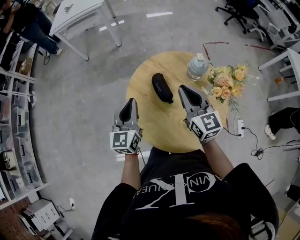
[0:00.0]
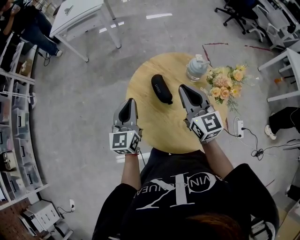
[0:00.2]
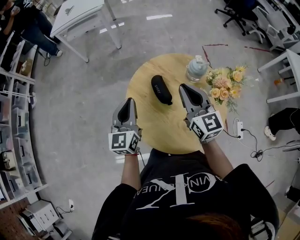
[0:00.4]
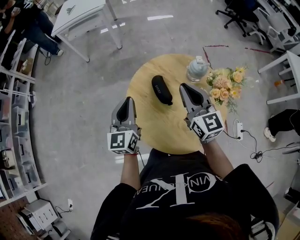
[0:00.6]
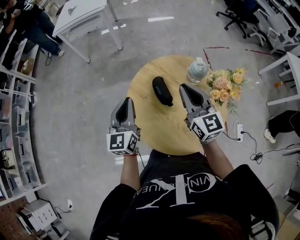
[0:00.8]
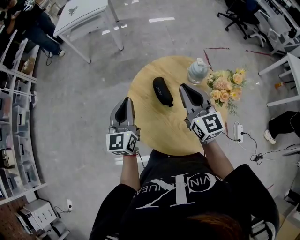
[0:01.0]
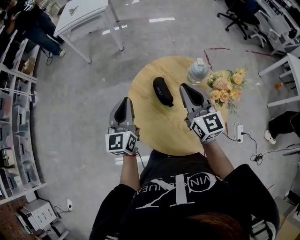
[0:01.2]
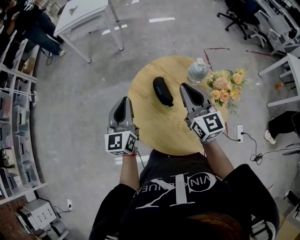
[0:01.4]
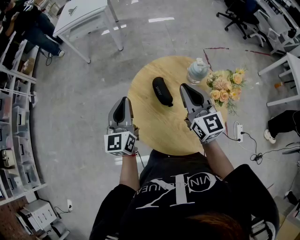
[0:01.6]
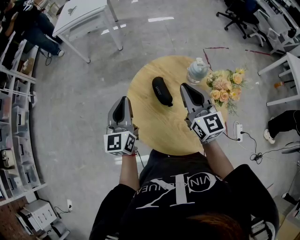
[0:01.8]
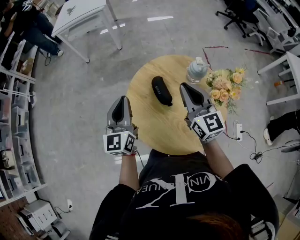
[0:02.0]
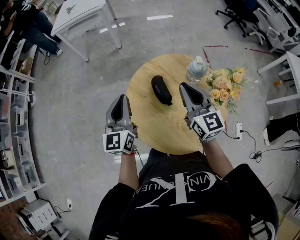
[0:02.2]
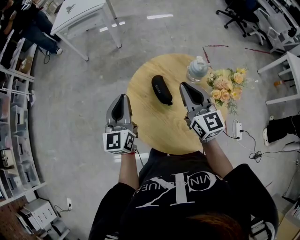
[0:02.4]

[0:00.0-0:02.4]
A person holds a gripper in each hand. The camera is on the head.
0:00.0 to 0:02.4: The grippers move only a little.

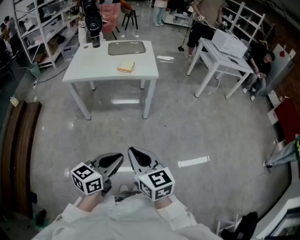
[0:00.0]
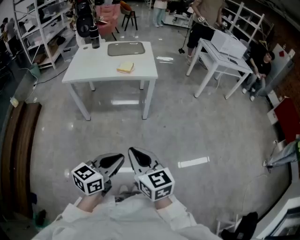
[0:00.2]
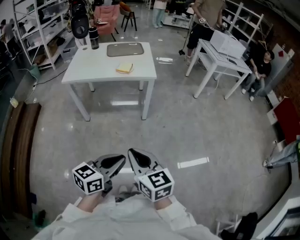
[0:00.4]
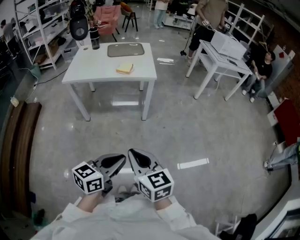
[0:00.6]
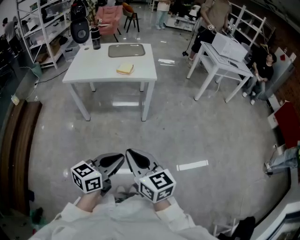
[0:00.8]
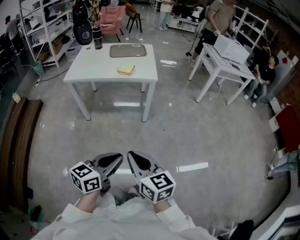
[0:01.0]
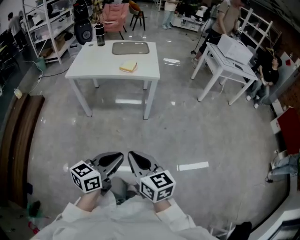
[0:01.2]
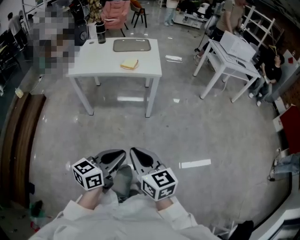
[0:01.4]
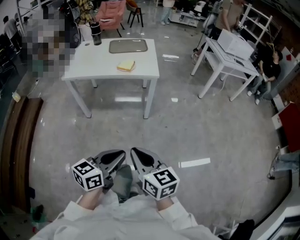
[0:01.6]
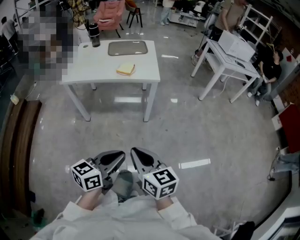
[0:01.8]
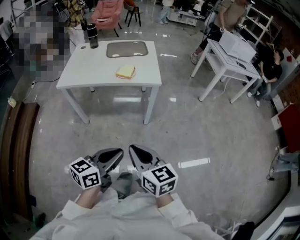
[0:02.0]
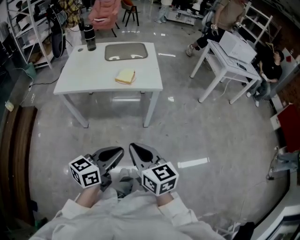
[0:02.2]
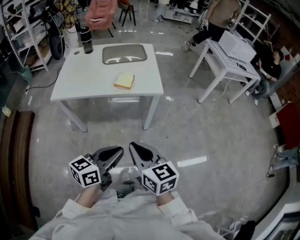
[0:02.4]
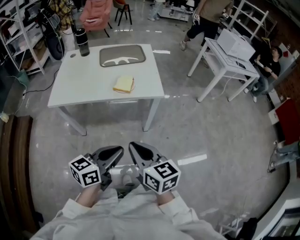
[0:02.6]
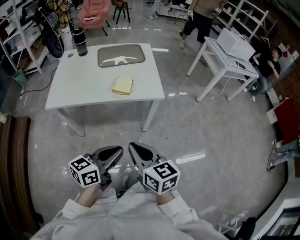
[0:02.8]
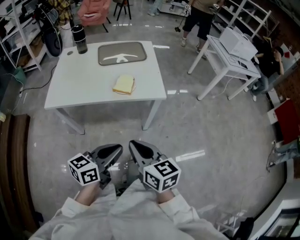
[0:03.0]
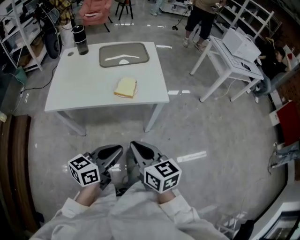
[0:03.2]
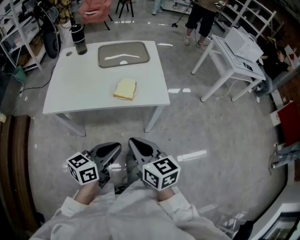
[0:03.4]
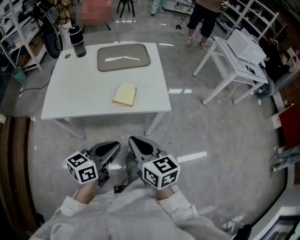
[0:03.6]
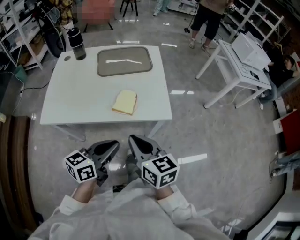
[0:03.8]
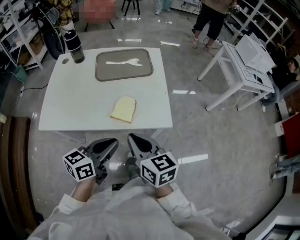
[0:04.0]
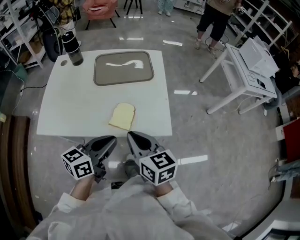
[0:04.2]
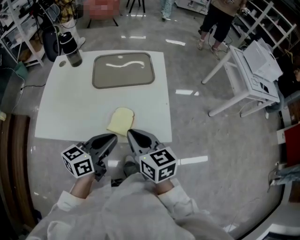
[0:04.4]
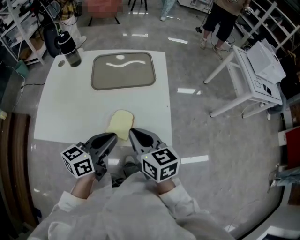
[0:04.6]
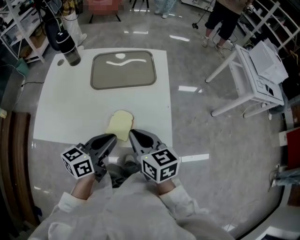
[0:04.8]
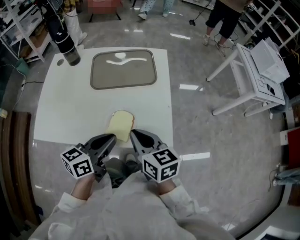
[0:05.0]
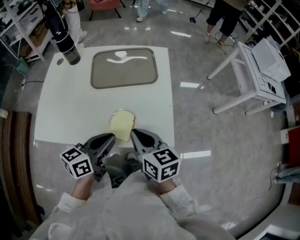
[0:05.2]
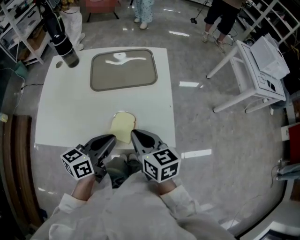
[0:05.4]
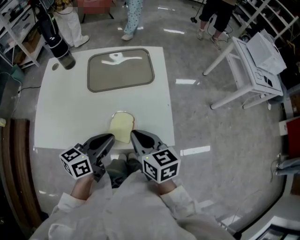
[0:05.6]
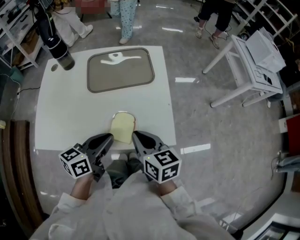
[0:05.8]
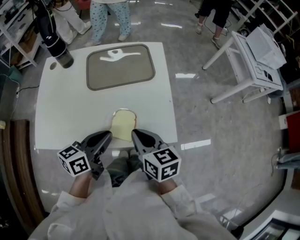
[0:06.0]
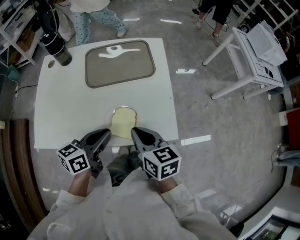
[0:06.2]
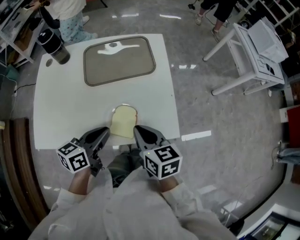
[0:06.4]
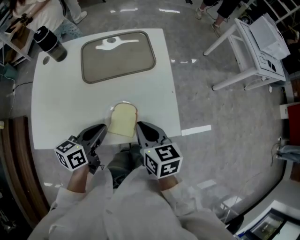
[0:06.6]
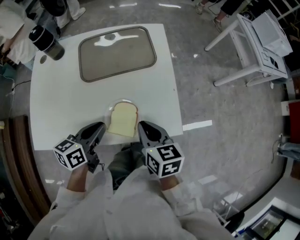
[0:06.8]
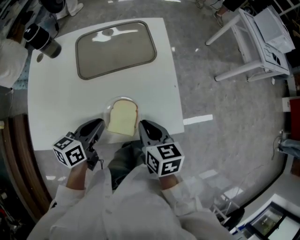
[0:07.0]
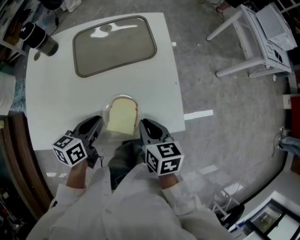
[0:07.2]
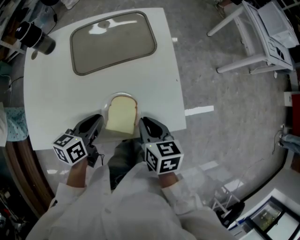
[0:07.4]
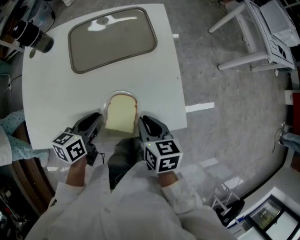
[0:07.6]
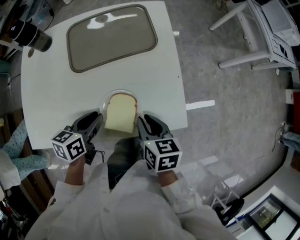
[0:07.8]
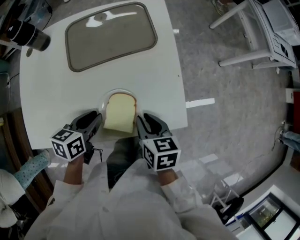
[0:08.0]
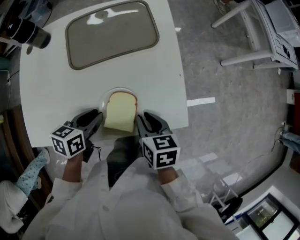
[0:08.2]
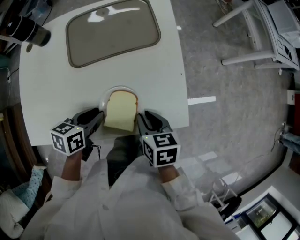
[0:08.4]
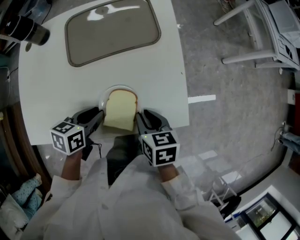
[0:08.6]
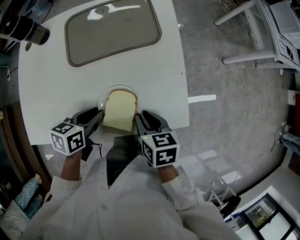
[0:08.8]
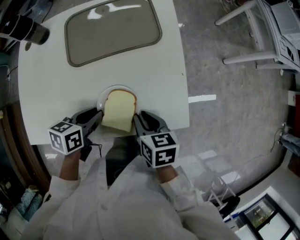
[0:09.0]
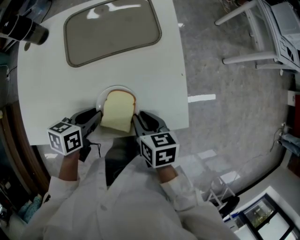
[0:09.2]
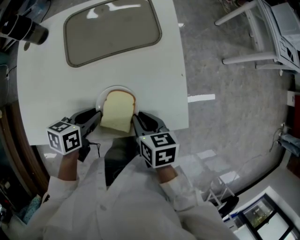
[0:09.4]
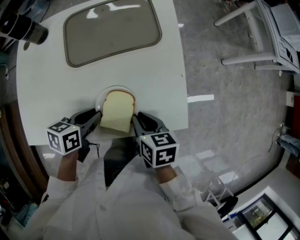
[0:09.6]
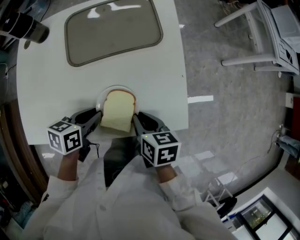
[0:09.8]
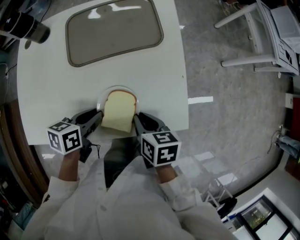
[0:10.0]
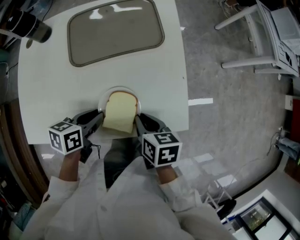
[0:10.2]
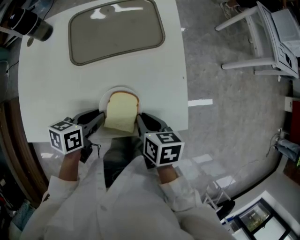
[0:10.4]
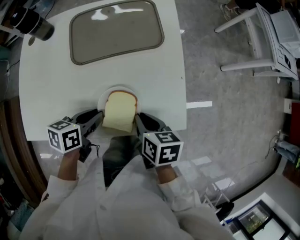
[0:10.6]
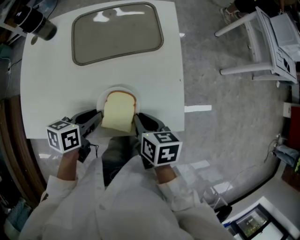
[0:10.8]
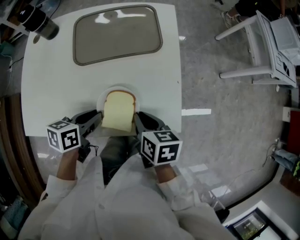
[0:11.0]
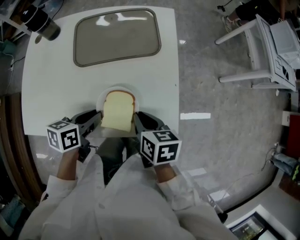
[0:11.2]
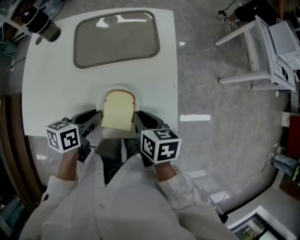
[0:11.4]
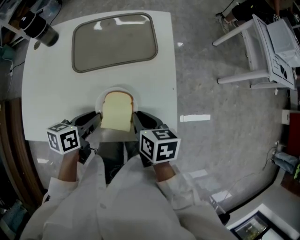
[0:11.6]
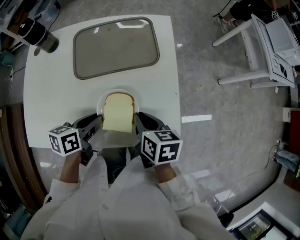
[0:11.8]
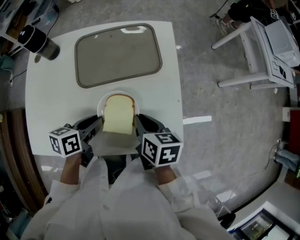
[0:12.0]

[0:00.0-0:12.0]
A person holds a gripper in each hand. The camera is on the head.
0:00.0 to 0:01.6: The left gripper changes place by about 5 cm. Meanwhile the right gripper shifts by some 5 cm.
0:01.6 to 0:03.0: Both grippers move forward and to the left, approximately 35 cm.
0:03.0 to 0:04.4: Both grippers move forward, some 35 cm.
0:04.4 to 0:06.0: Both grippers move forward, roughly 5 cm.
0:06.0 to 0:07.6: The right gripper travels downward by roughly 10 cm, while the left gripper heads downward and forward, covering approximately 15 cm.
0:07.6 to 0:10.4: The grippers stay close to where they were, moving slightly.
0:10.4 to 0:12.0: Both grippers move forward, some 5 cm.

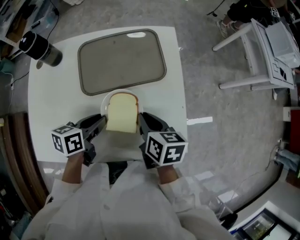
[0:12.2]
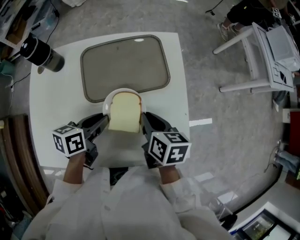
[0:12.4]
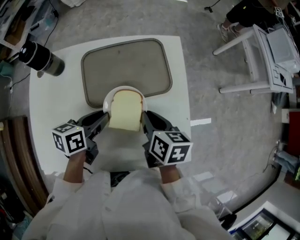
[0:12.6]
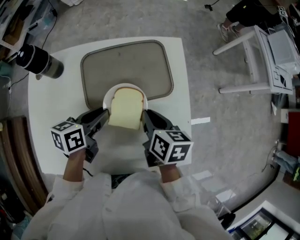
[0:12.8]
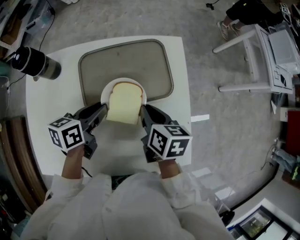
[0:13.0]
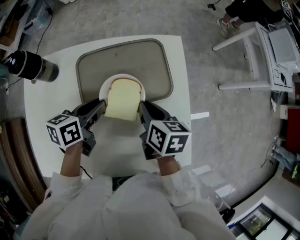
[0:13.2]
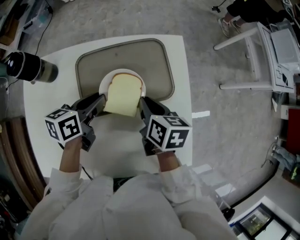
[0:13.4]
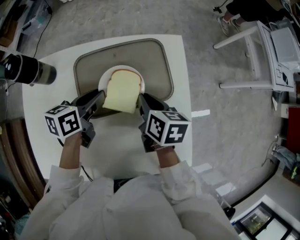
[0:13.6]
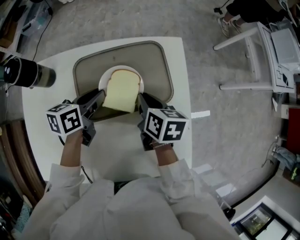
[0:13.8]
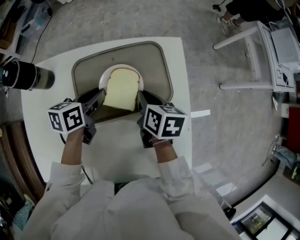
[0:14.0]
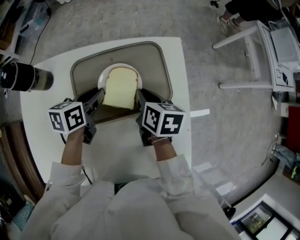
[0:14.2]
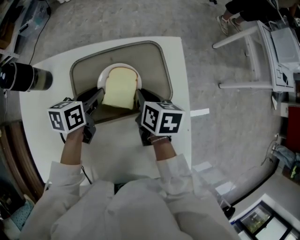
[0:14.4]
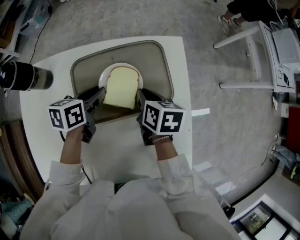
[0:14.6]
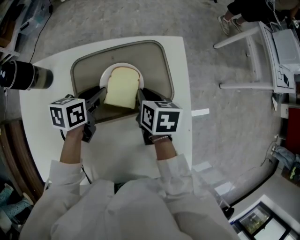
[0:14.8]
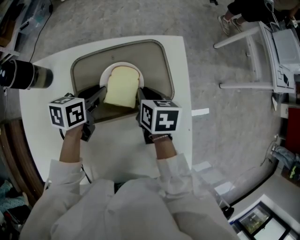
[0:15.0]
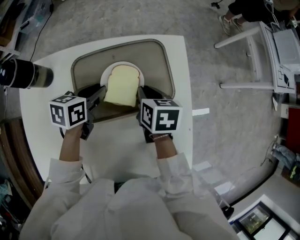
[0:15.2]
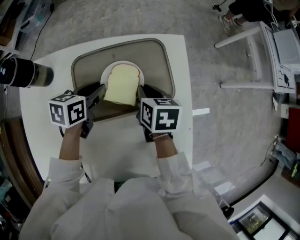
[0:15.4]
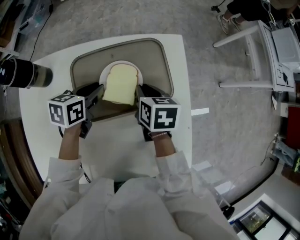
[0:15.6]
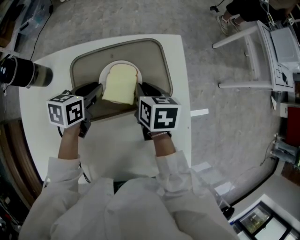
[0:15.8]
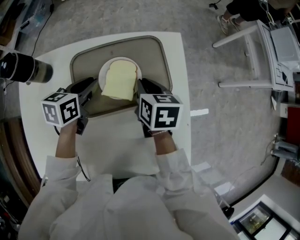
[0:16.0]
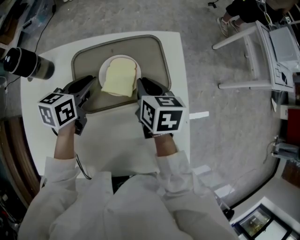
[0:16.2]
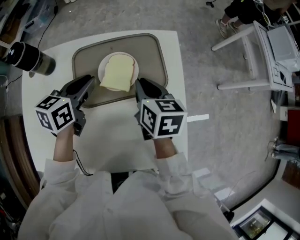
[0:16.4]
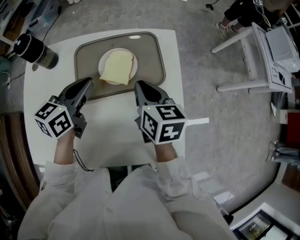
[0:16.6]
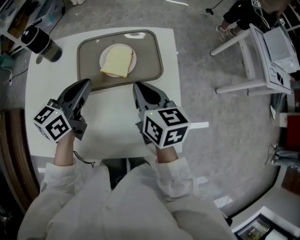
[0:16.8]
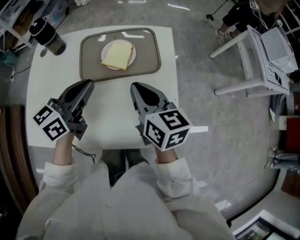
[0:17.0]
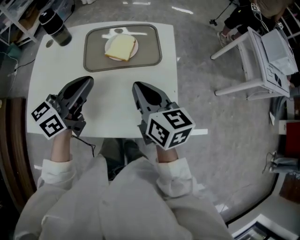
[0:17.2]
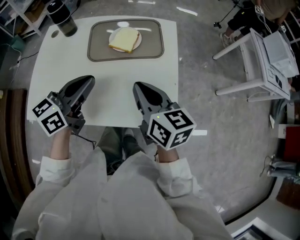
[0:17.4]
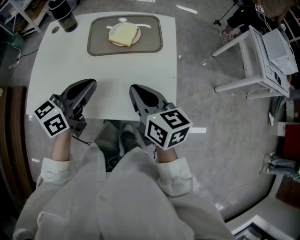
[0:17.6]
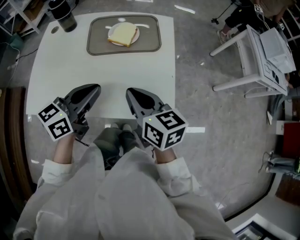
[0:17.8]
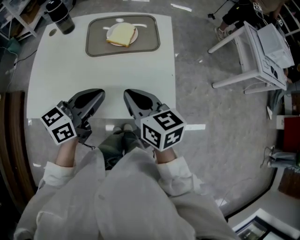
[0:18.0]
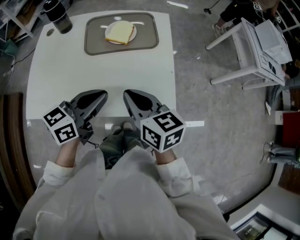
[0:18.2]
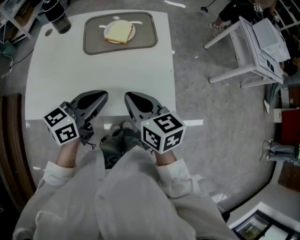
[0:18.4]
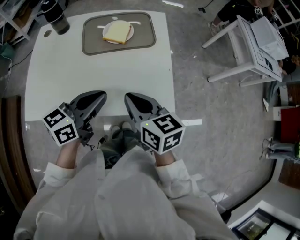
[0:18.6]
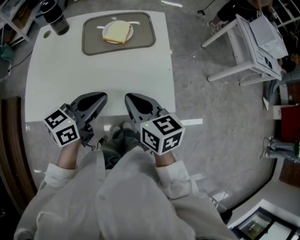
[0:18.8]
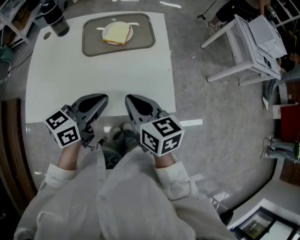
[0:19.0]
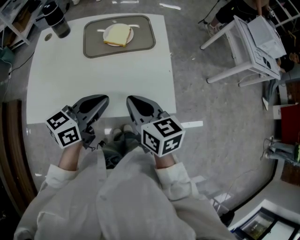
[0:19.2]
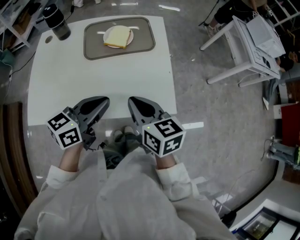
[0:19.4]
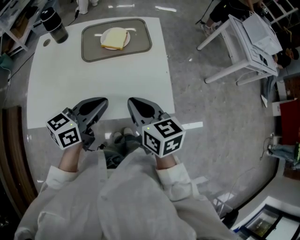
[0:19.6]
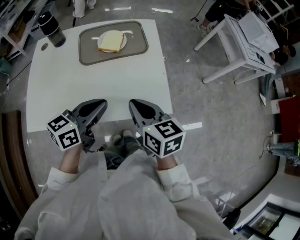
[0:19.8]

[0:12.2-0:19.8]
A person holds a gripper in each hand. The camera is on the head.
0:12.2 to 0:13.8: Both grippers move forward, approximately 20 cm.
0:13.8 to 0:15.2: There are only small adjustments of the grippers.
0:15.2 to 0:16.8: The right gripper heads backward and upward, covering approximately 20 cm, and turns by about 30 degrees; the left gripper goes about 20 cm upward and backward, and rotates some 30 degrees.
0:16.8 to 0:18.2: Both grippers move backward, some 25 cm.
0:18.2 to 0:19.8: The grippers stay close to where they were, moving slightly.

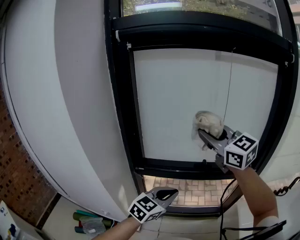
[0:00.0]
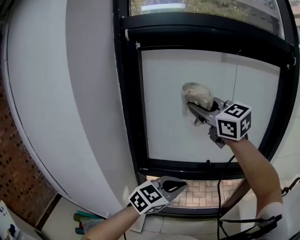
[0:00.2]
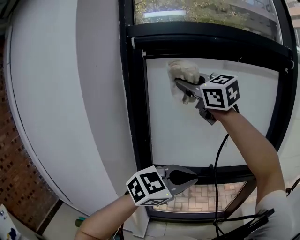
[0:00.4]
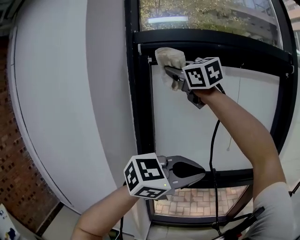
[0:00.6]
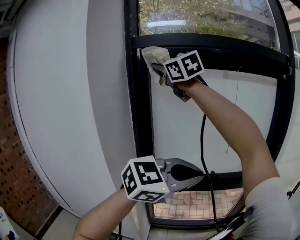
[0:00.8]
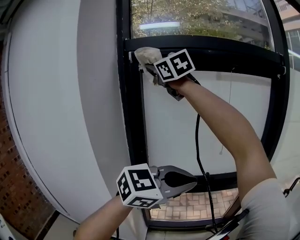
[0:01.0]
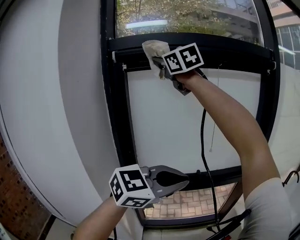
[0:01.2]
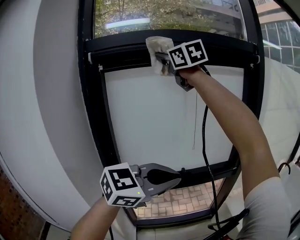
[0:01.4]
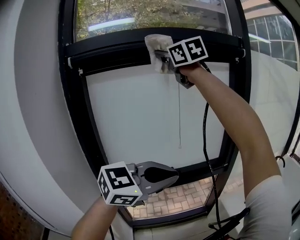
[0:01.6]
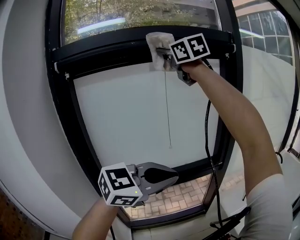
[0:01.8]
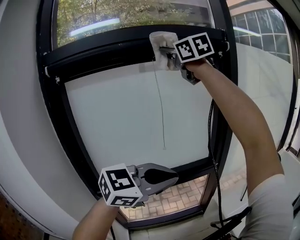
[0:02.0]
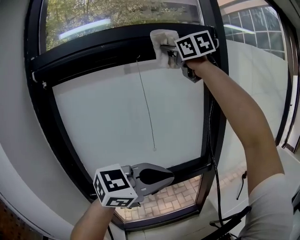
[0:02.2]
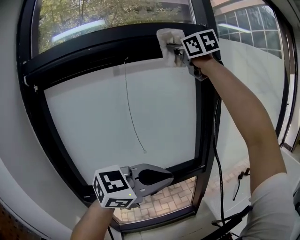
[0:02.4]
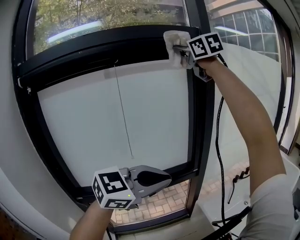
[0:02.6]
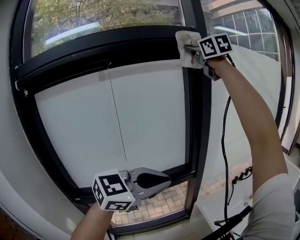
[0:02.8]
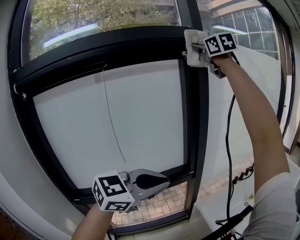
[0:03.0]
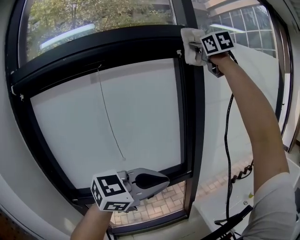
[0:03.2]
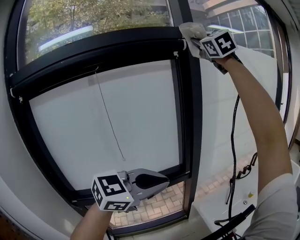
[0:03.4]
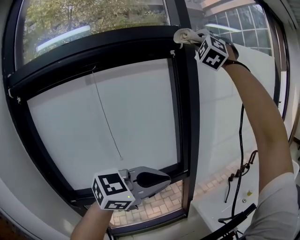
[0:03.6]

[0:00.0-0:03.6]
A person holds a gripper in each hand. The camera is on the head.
0:00.0 to 0:01.8: Both grippers travel together upward, roughly 25 cm. The right gripper rotates approximately 20 degrees, while the left gripper rotates some 40 degrees.
0:01.8 to 0:03.6: The left gripper travels to the right and forward by about 20 cm, while the right gripper goes roughly 40 cm to the right and forward, and twists some 60 degrees counterclockwise, seen from behind.
